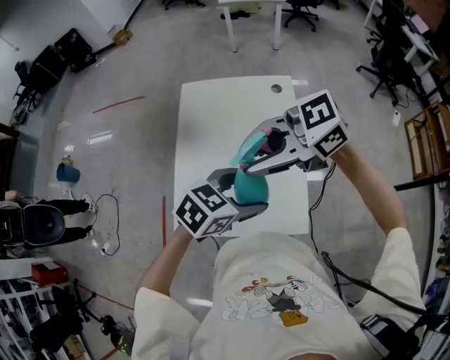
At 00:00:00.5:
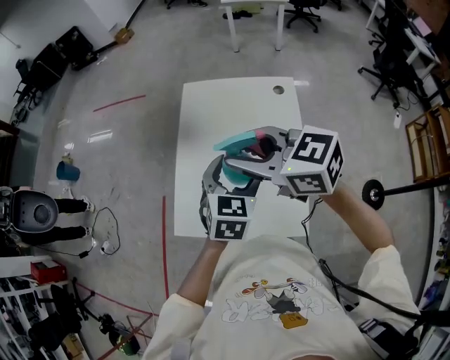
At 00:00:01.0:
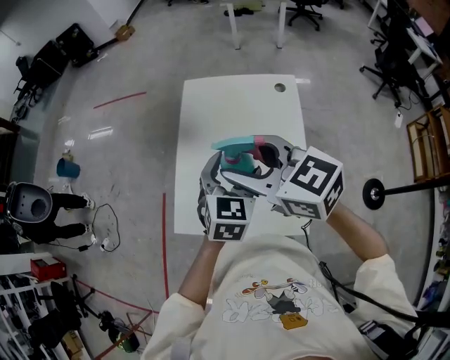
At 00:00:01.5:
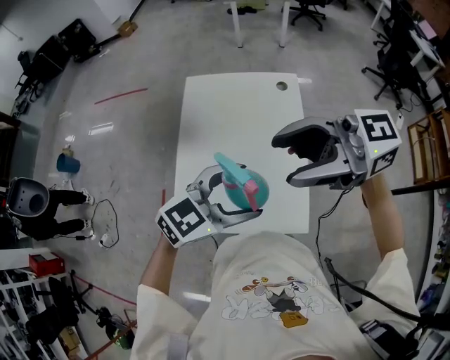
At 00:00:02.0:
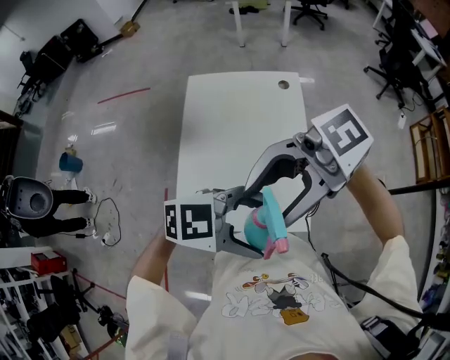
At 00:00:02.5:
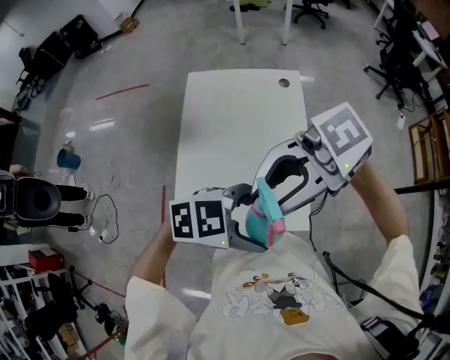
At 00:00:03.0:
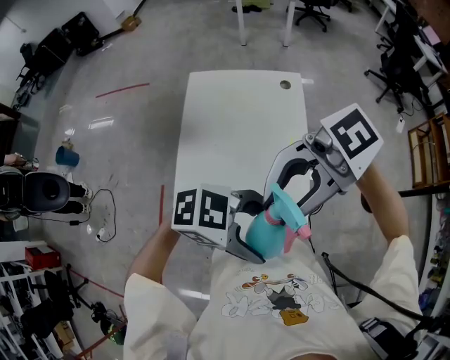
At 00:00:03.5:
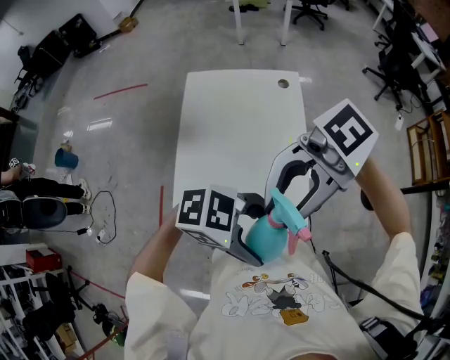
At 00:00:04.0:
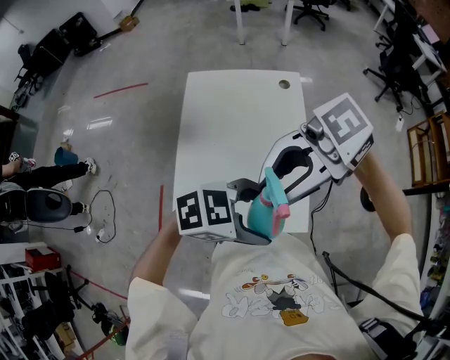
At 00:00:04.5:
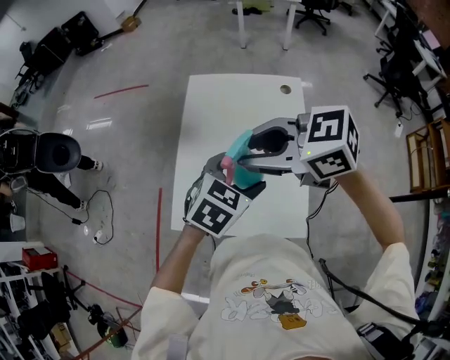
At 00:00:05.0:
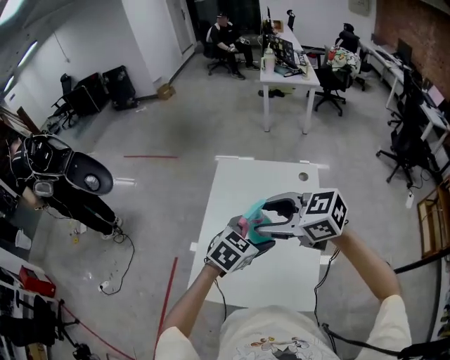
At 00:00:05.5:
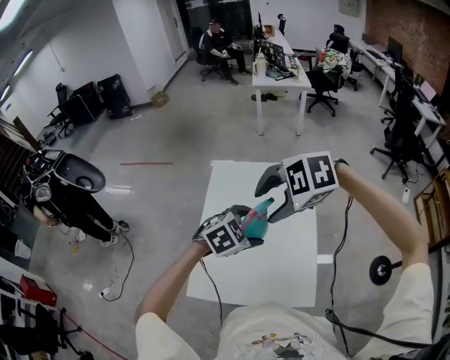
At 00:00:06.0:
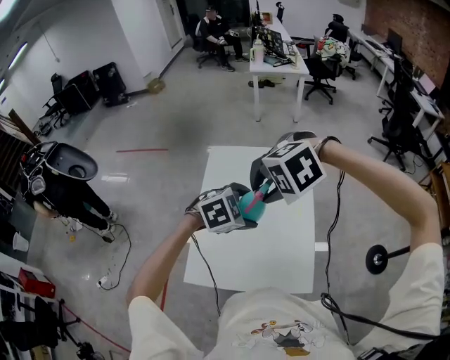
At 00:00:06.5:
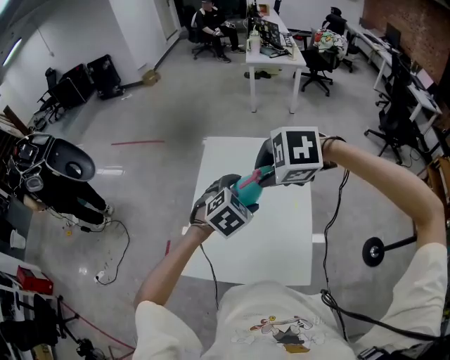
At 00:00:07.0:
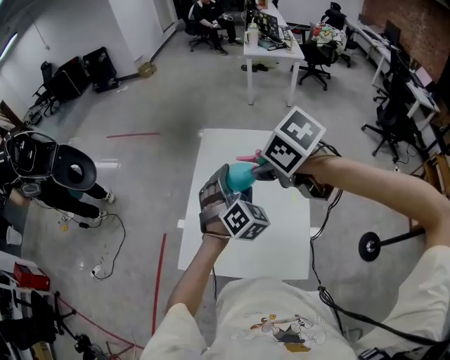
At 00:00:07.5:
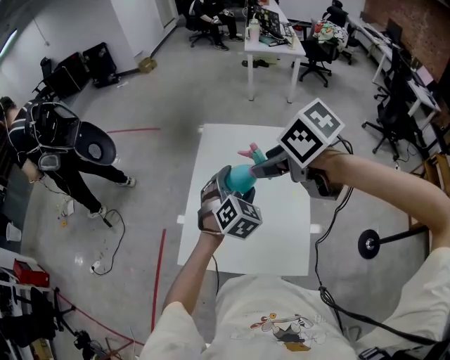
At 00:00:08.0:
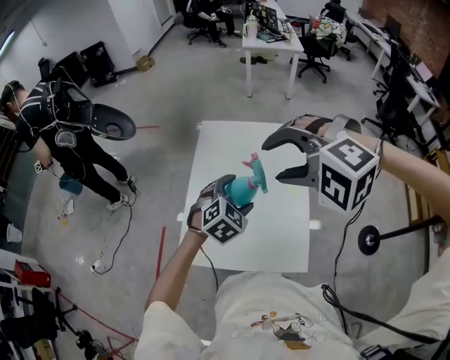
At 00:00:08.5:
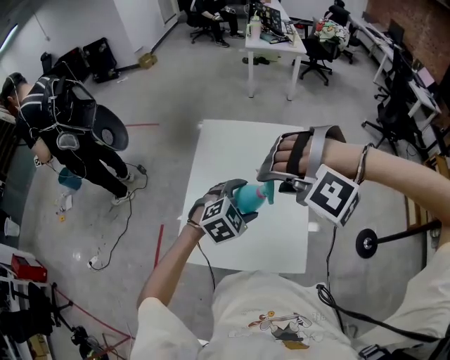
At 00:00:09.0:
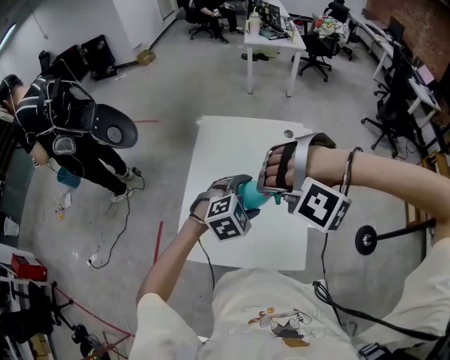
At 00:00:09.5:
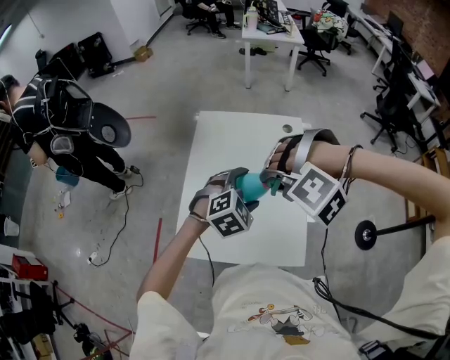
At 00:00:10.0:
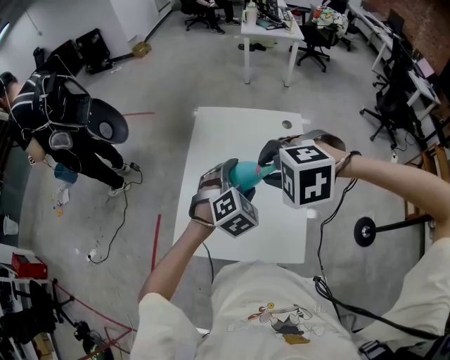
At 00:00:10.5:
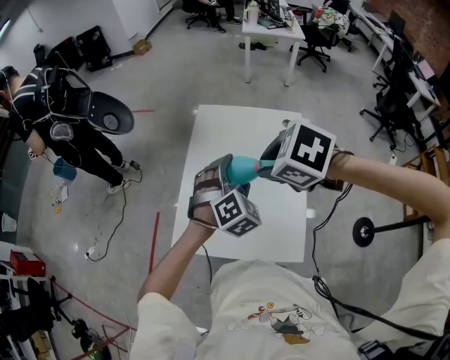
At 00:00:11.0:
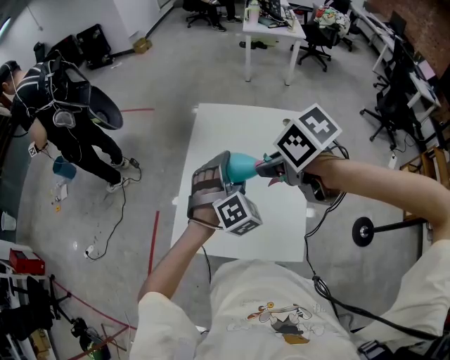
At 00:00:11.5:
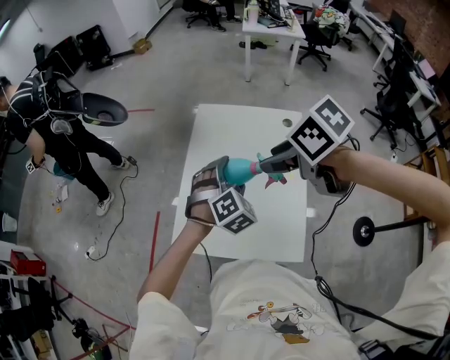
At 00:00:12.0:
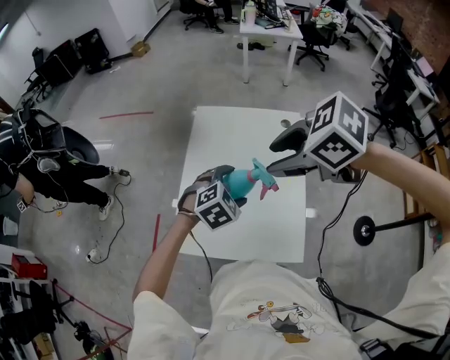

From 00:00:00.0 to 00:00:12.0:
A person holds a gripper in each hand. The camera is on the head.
From 00:00:00.0 to 00:00:02.0: The right gripper shifts by about 10 cm, changes its angle by some 20 degrees, and opens its fingers. Meanwhile the left gripper shifts by some 15 cm, and turns by some 40 degrees.
From 00:00:02.0 to 00:00:04.0: The right gripper closes its fingers.
From 00:00:04.0 to 00:00:06.0: The left gripper moves approximately 20 cm, and rotates about 40 degrees, while the right gripper moves about 15 cm, angles its fingers downward, by about 60 degrees, and opens, then closes again.
From 00:00:06.0 to 00:00:08.0: The left gripper changes its angle by roughly 30 degrees, while the right gripper travels upward by about 5 cm, swivels roughly 30 degrees, and opens its fingers.
From 00:00:08.0 to 00:00:10.0: The right gripper travels downward by roughly 10 cm, swivels about 20 degrees, and closes up.
From 00:00:10.0 to 00:00:12.0: The right gripper travels upward by about 5 cm, and changes its angle by roughly 50 degrees.

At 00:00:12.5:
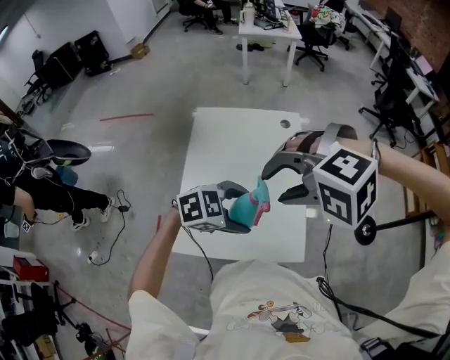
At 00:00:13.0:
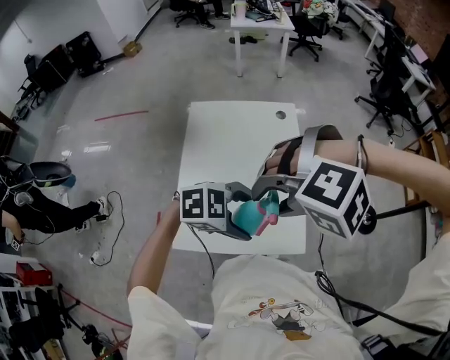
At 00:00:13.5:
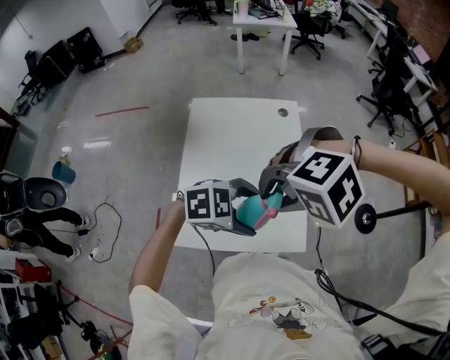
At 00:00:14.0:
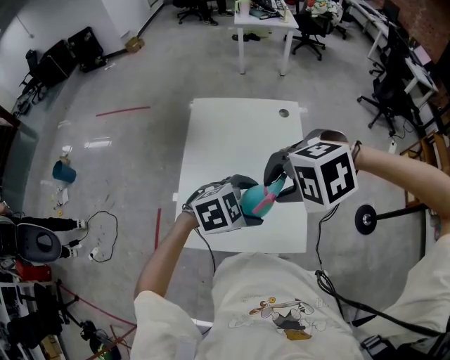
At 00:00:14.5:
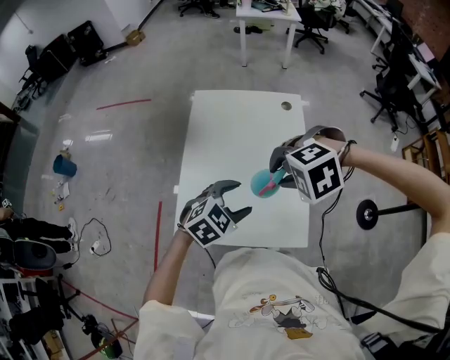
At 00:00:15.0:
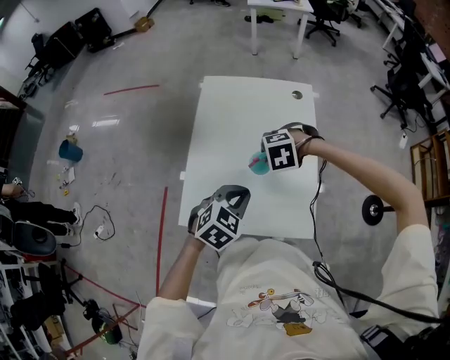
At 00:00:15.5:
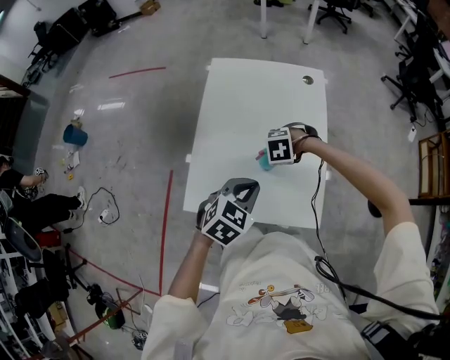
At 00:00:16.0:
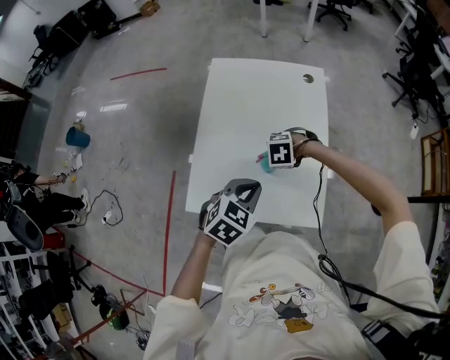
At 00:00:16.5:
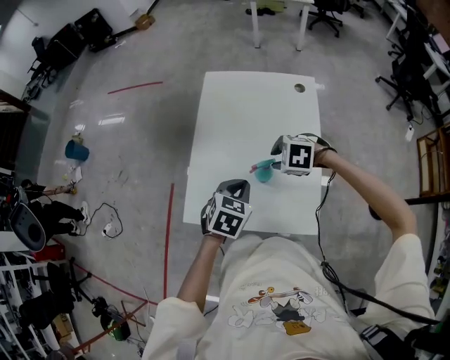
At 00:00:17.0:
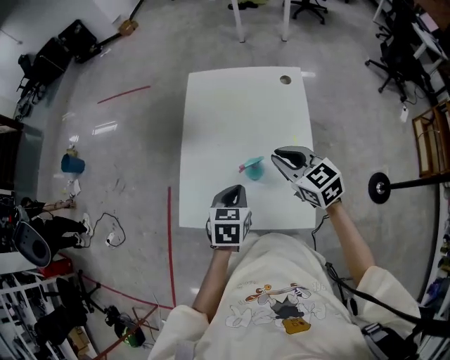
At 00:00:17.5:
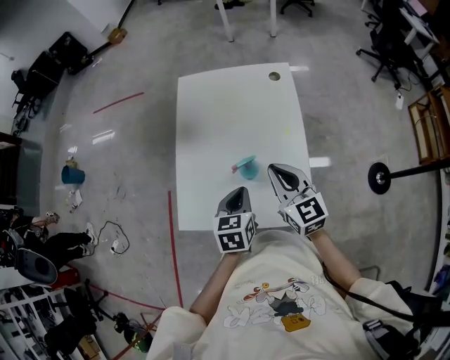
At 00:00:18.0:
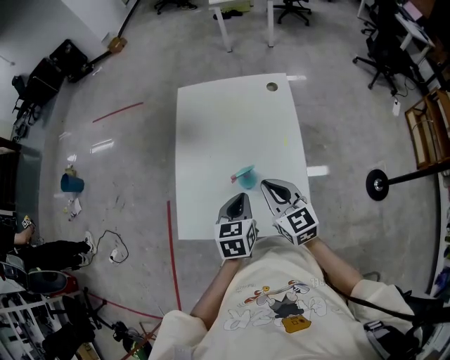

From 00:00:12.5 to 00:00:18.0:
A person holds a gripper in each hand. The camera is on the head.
From 00:00:12.5 to 00:00:14.5: The right gripper heads downward, covering approximately 10 cm, and changes its angle by some 20 degrees. Meanwhile the left gripper rotates about 30 degrees.
From 00:00:14.5 to 00:00:16.0: The left gripper closes. The right gripper heads downward, covering approximately 25 cm, and swivels roughly 20 degrees.
From 00:00:16.0 to 00:00:18.0: The left gripper ends up approximately 5 cm from where it was, and turns by roughly 40 degrees; the right gripper heads upward, covering about 15 cm, angles its fingers upward, by about 60 degrees, and closes its fingers.

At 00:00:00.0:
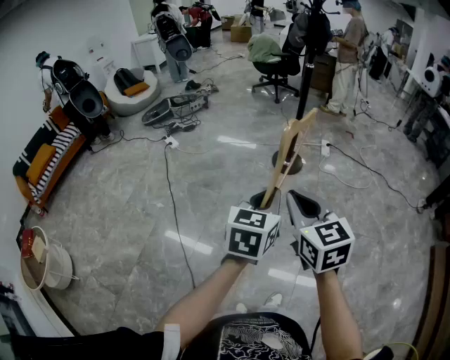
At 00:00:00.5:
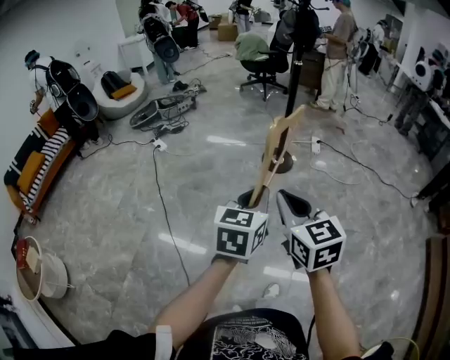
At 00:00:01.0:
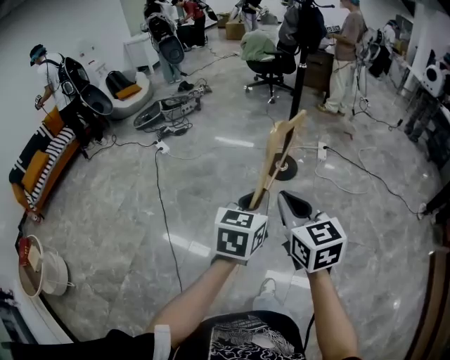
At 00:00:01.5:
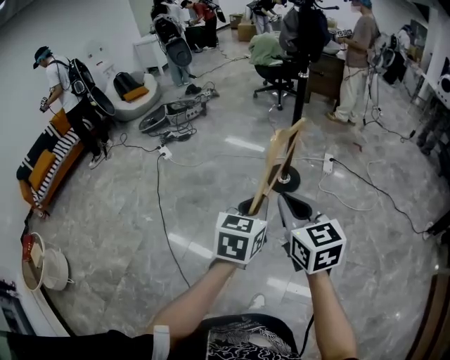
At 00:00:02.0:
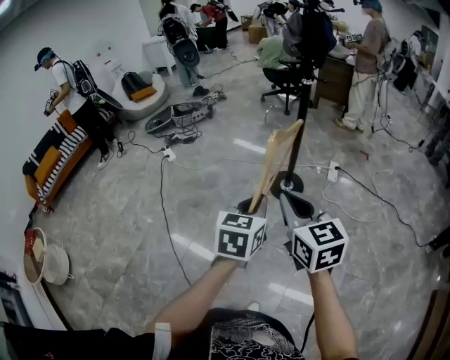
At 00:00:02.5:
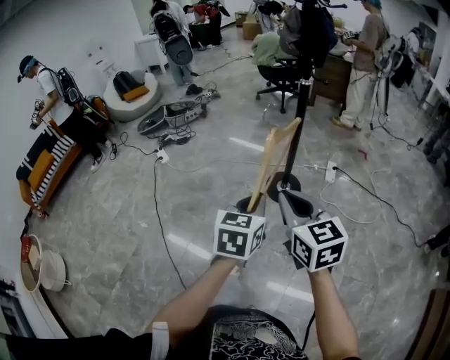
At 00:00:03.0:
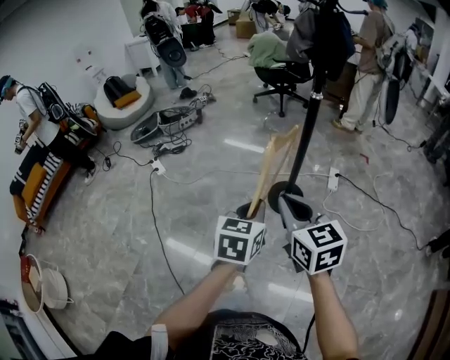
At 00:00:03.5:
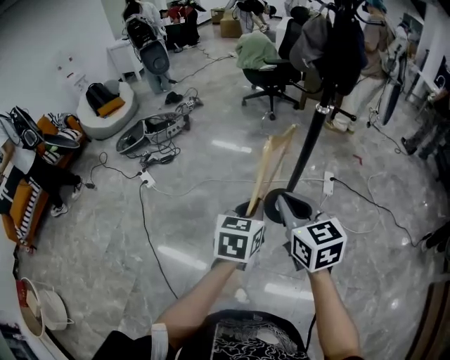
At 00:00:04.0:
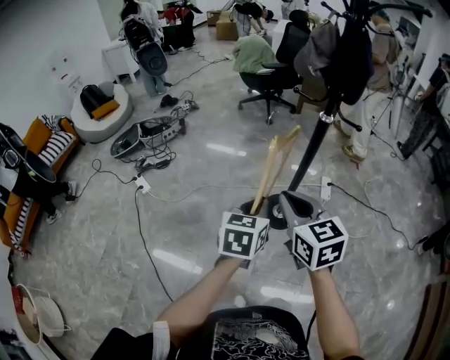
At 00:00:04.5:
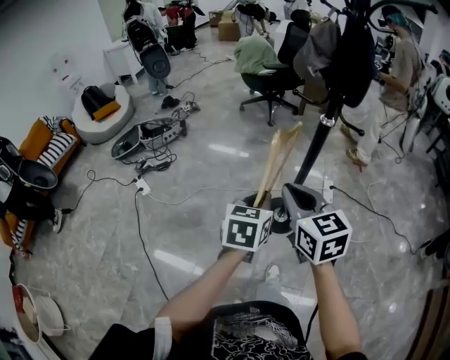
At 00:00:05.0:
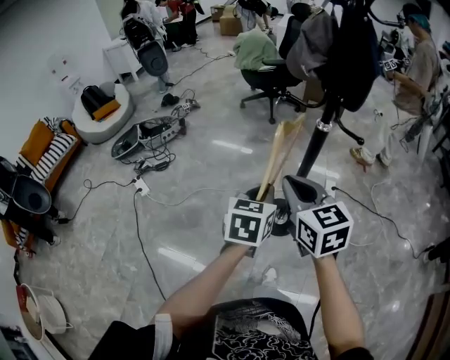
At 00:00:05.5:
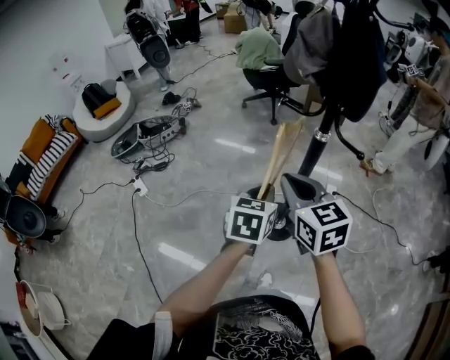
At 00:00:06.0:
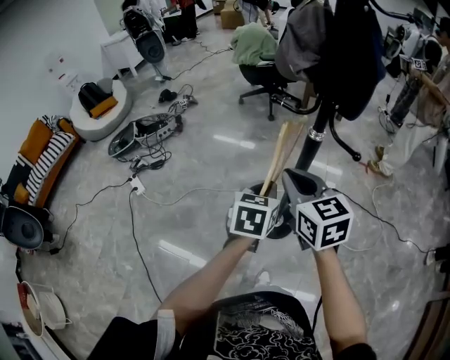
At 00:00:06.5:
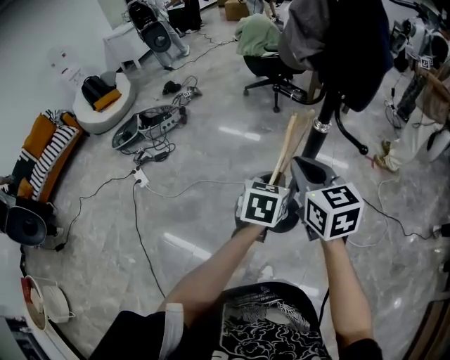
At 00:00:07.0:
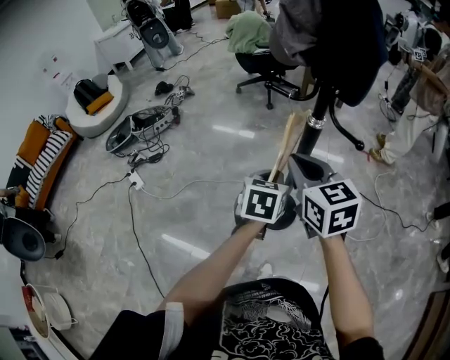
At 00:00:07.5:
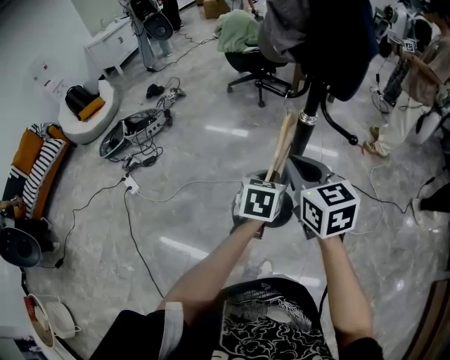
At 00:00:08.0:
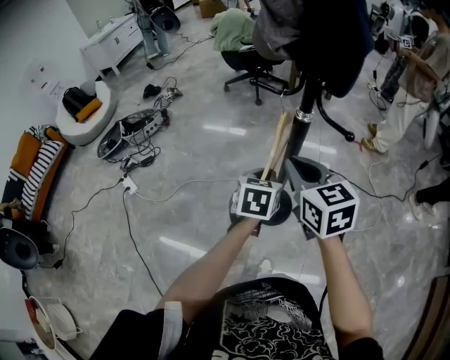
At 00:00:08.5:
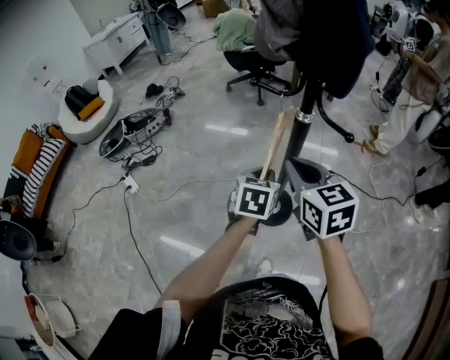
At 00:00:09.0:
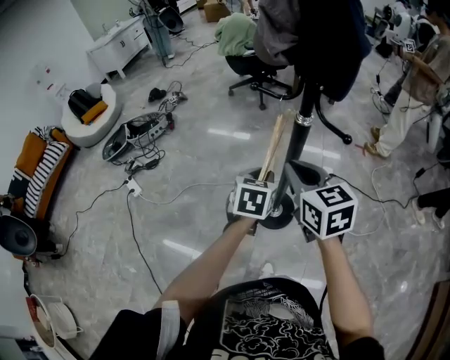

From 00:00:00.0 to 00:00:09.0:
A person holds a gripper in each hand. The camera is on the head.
From 00:00:00.0 to 00:00:02.0: Both grippers move forward and to the right, approximately 35 cm.
From 00:00:02.0 to 00:00:04.5: The two grippers travel together, forward, some 40 cm.
From 00:00:04.5 to 00:00:07.0: The grippers both shift forward and to the right by roughly 25 cm.
From 00:00:07.0 to 00:00:09.0: The grippers stay close to where they were, moving slightly.
